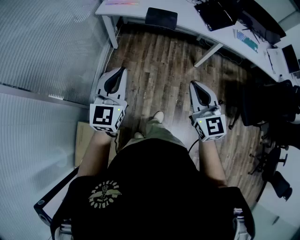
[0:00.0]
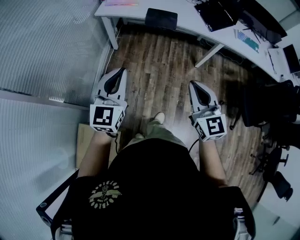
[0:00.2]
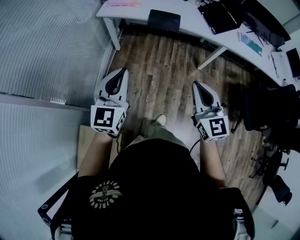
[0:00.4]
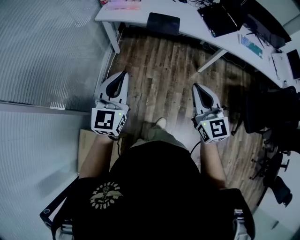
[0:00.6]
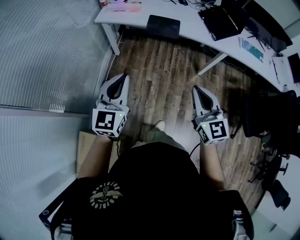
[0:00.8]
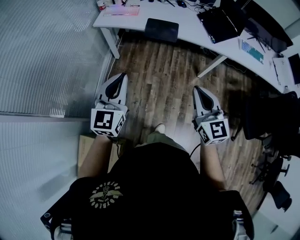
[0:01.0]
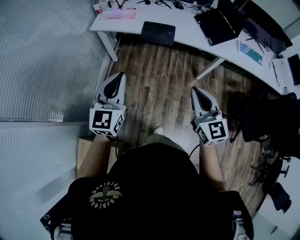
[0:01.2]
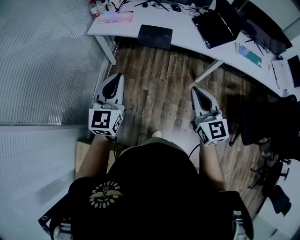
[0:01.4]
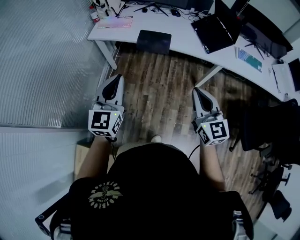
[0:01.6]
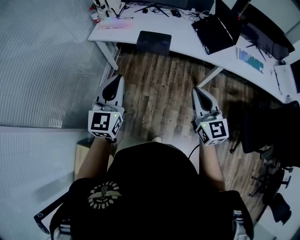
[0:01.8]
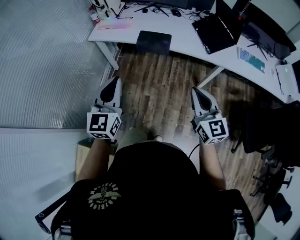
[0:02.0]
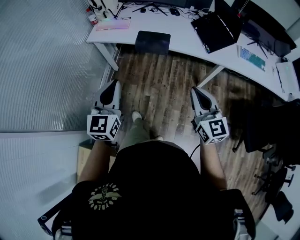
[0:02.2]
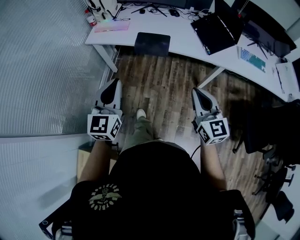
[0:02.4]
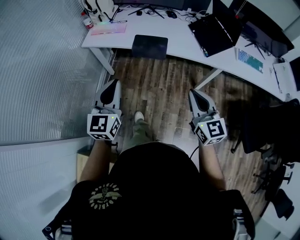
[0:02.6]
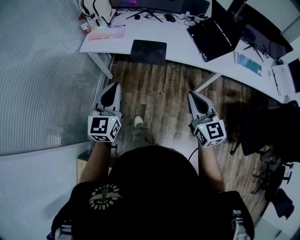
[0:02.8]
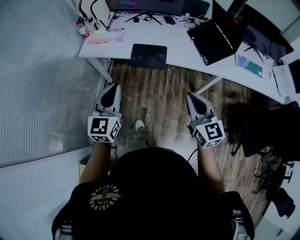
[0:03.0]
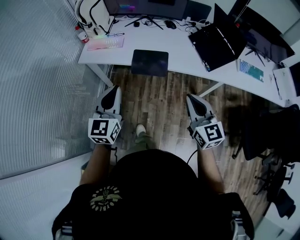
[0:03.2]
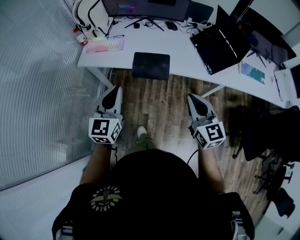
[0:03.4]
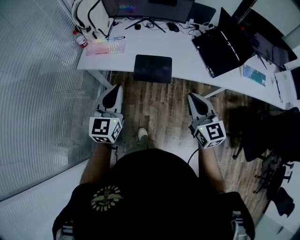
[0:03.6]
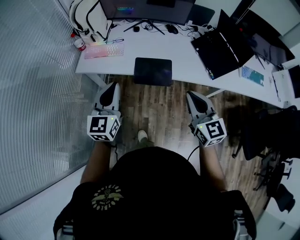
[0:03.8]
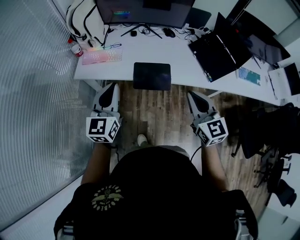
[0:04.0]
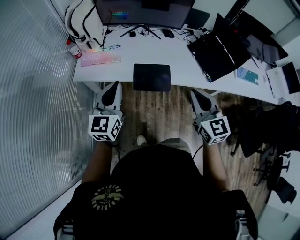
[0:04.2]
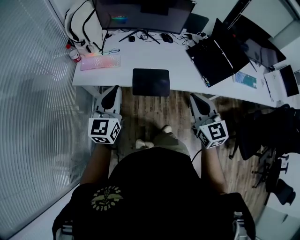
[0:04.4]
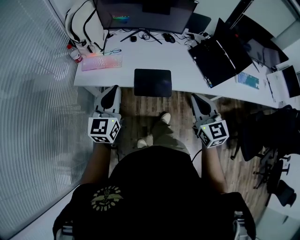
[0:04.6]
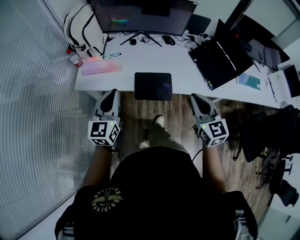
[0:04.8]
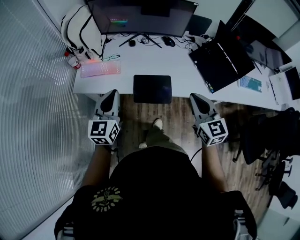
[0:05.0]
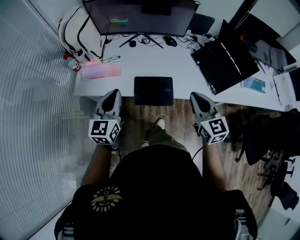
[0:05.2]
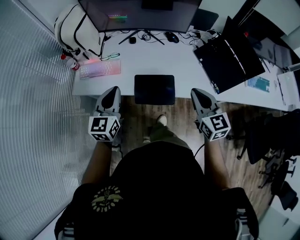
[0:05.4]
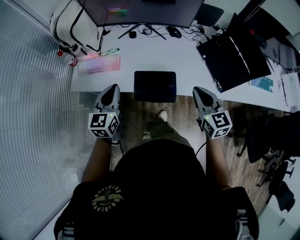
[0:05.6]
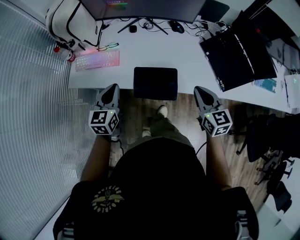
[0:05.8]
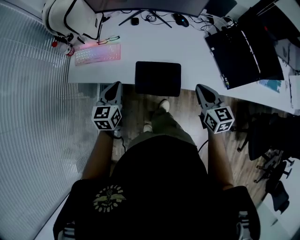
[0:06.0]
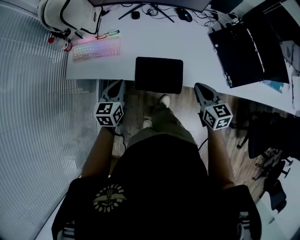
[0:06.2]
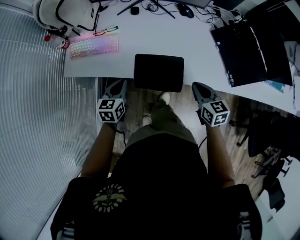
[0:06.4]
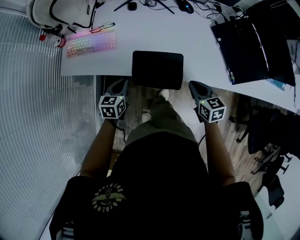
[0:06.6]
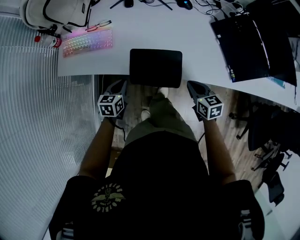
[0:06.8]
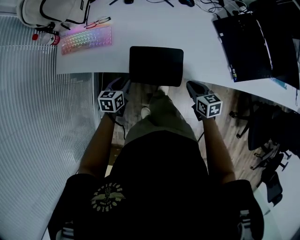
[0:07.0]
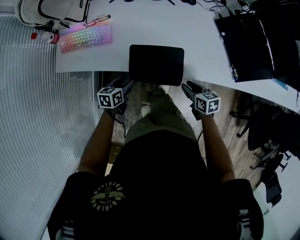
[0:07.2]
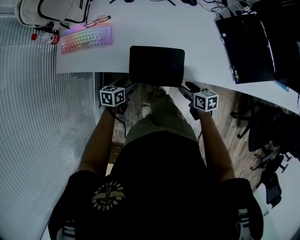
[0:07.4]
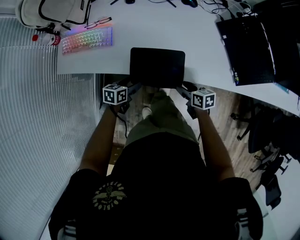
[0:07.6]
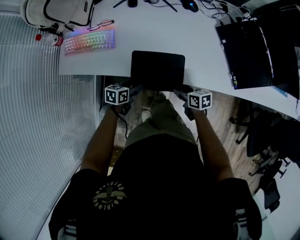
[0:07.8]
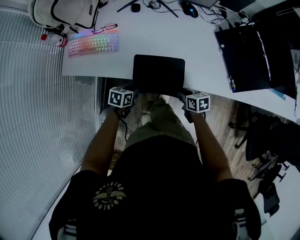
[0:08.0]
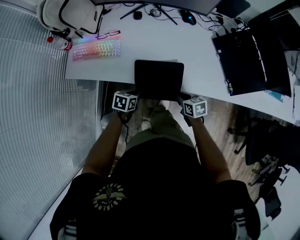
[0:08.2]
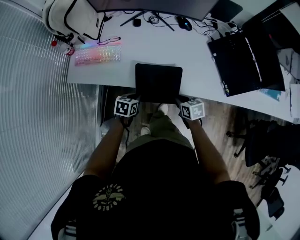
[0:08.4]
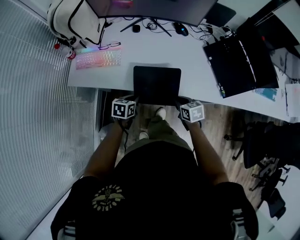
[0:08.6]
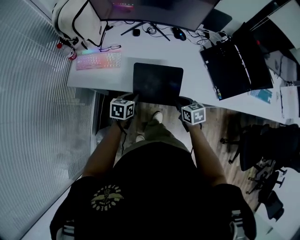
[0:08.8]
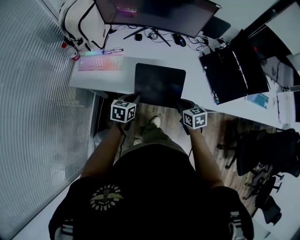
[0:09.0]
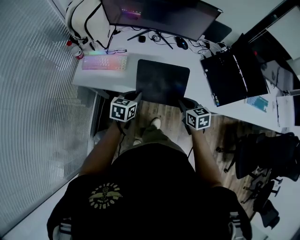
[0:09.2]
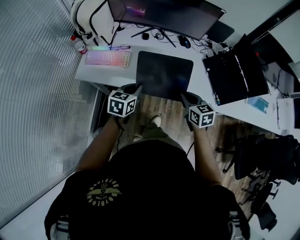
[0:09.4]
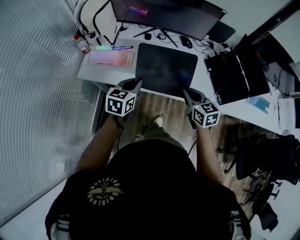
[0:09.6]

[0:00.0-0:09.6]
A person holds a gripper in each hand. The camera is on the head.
0:00.0 to 0:01.6: Both grippers move forward and to the right, some 25 cm.
0:01.6 to 0:03.2: Both grippers move forward, approximately 20 cm.
0:03.2 to 0:04.8: The two grippers go roughly 20 cm forward.
0:04.8 to 0:06.4: The two grippers go approximately 30 cm downward and forward. The right gripper turns by about 30 degrees, while the left gripper turns by approximately 30 degrees.
0:06.4 to 0:08.0: The right gripper goes approximately 15 cm downward, swivels roughly 30 degrees, and opens, then closes once more; the left gripper is displaced downward and to the right by roughly 15 cm, changes its angle by about 30 degrees, and opens, then closes again.
0:08.0 to 0:09.6: Both grippers travel together upward, about 30 cm. The right gripper rotates roughly 40 degrees; the left gripper turns by about 30 degrees.

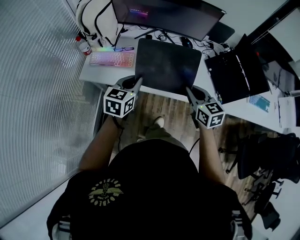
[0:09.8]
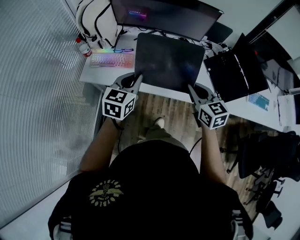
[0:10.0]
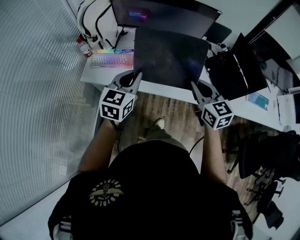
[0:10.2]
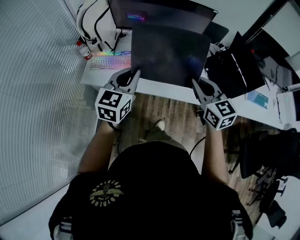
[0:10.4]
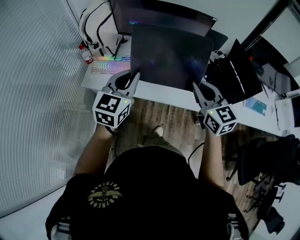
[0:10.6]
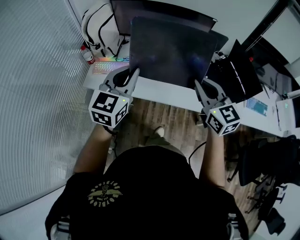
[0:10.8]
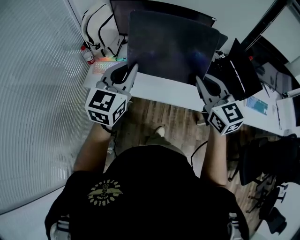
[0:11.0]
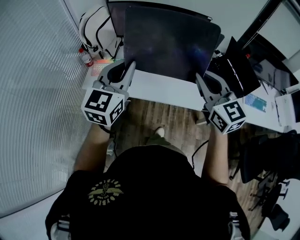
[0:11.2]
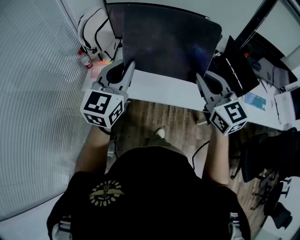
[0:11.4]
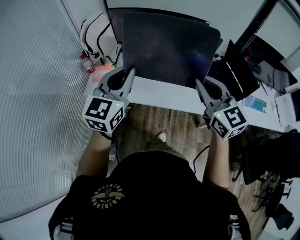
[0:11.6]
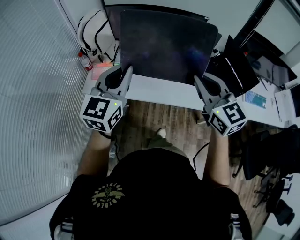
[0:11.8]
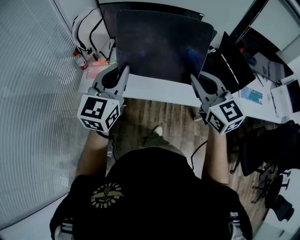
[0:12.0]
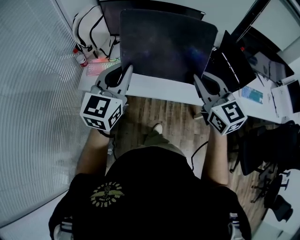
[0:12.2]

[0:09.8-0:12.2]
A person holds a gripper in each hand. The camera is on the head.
0:09.8 to 0:11.0: Both grippers move upward, some 20 cm. The left gripper turns by about 30 degrees; the right gripper turns by approximately 20 degrees.
0:11.0 to 0:12.2: The grippers make only small movements.

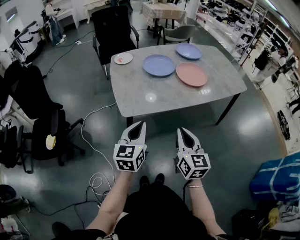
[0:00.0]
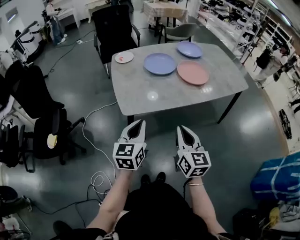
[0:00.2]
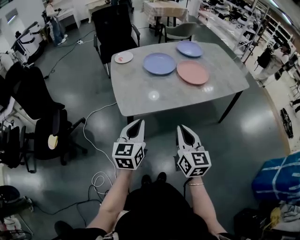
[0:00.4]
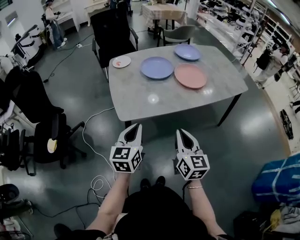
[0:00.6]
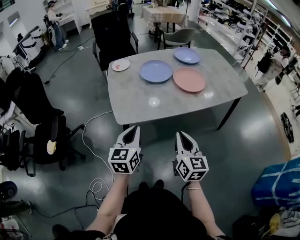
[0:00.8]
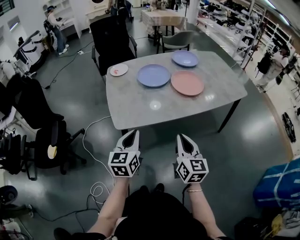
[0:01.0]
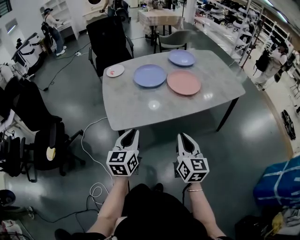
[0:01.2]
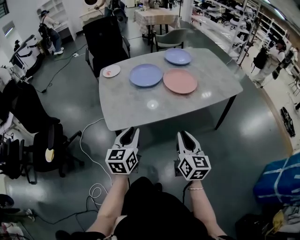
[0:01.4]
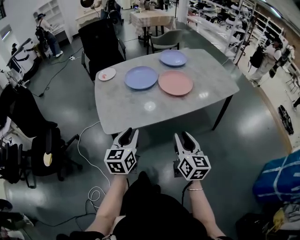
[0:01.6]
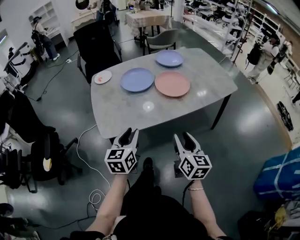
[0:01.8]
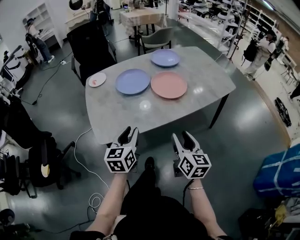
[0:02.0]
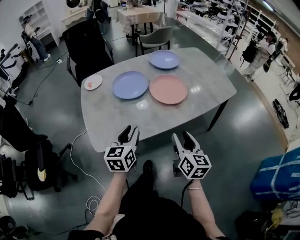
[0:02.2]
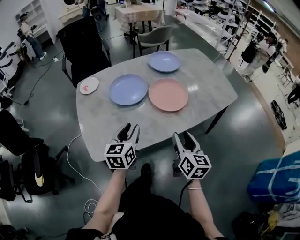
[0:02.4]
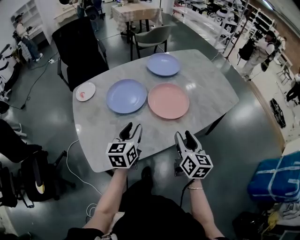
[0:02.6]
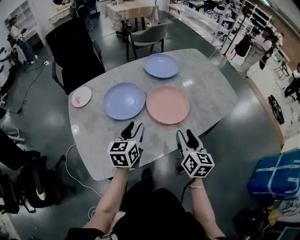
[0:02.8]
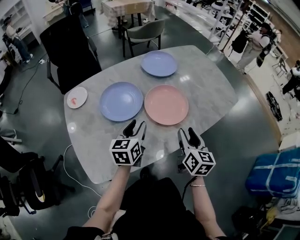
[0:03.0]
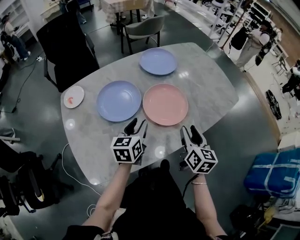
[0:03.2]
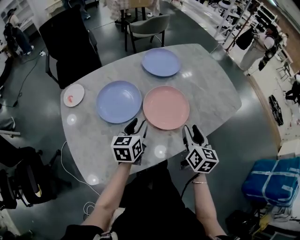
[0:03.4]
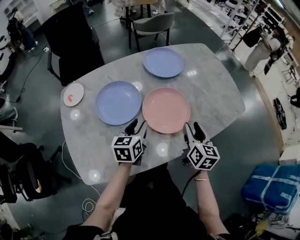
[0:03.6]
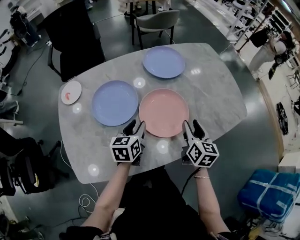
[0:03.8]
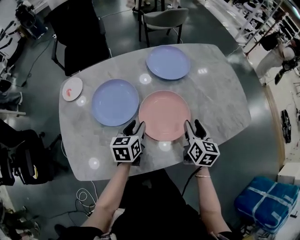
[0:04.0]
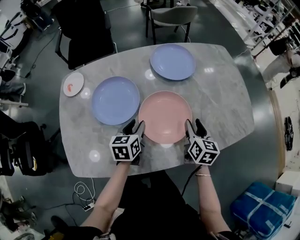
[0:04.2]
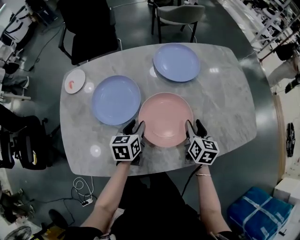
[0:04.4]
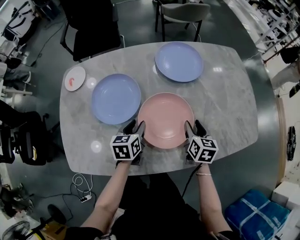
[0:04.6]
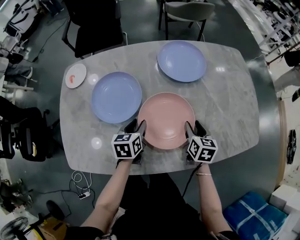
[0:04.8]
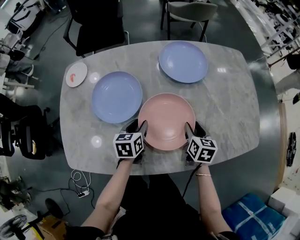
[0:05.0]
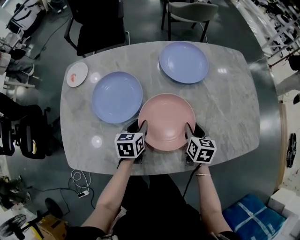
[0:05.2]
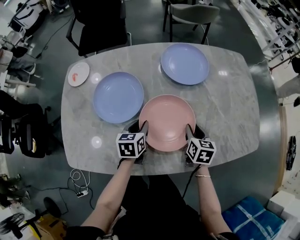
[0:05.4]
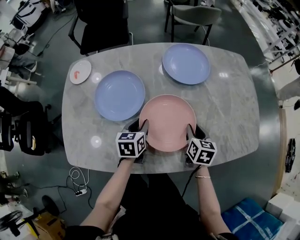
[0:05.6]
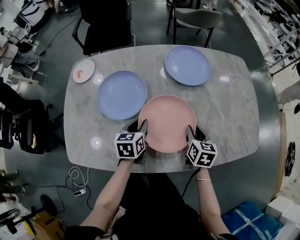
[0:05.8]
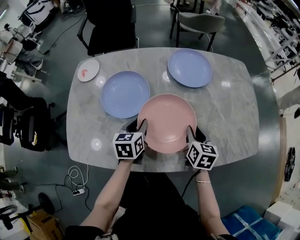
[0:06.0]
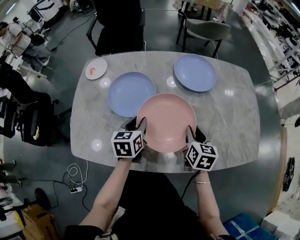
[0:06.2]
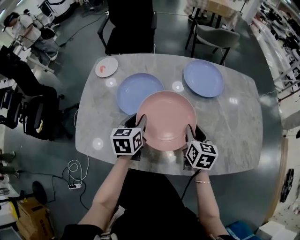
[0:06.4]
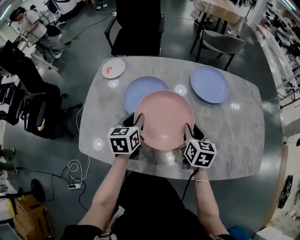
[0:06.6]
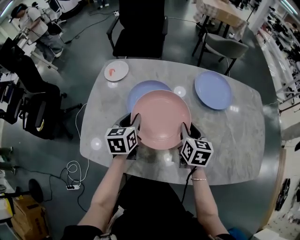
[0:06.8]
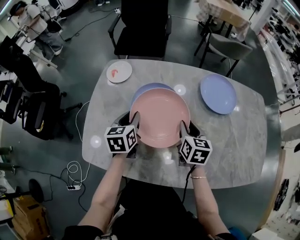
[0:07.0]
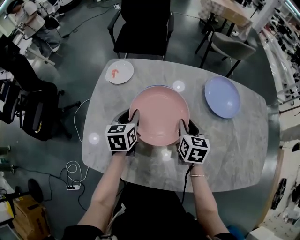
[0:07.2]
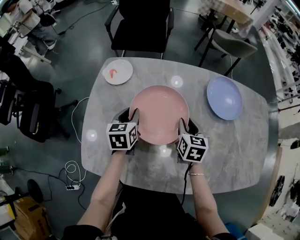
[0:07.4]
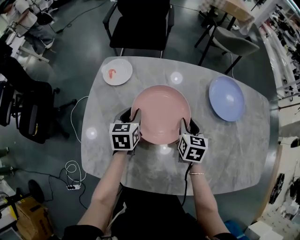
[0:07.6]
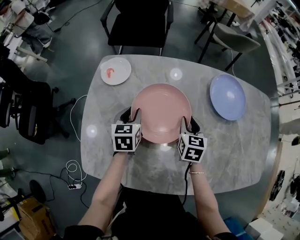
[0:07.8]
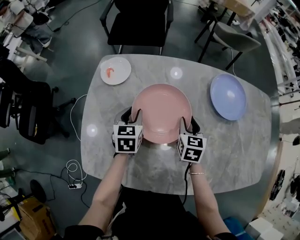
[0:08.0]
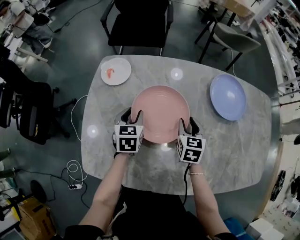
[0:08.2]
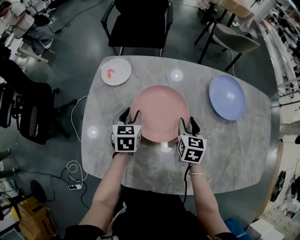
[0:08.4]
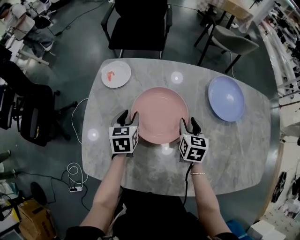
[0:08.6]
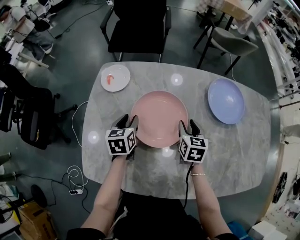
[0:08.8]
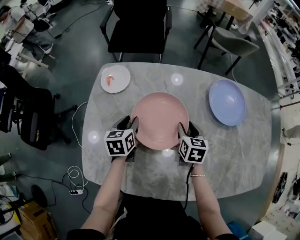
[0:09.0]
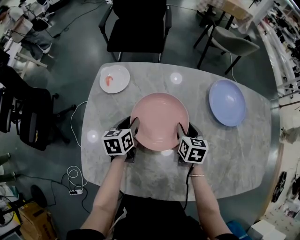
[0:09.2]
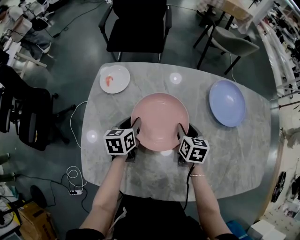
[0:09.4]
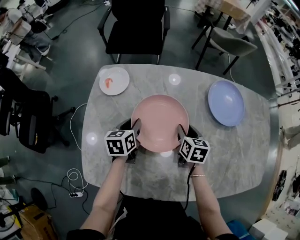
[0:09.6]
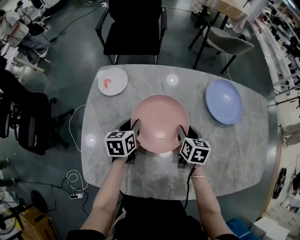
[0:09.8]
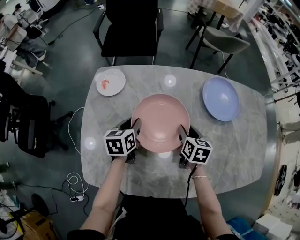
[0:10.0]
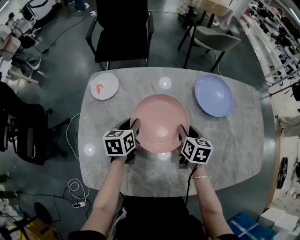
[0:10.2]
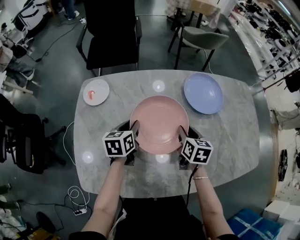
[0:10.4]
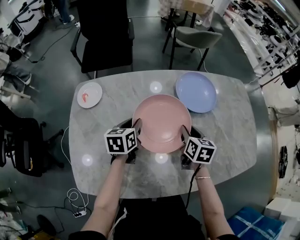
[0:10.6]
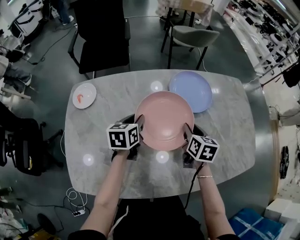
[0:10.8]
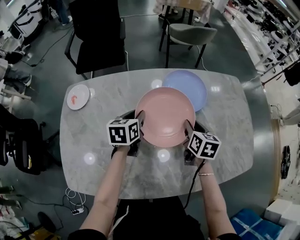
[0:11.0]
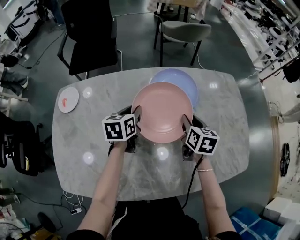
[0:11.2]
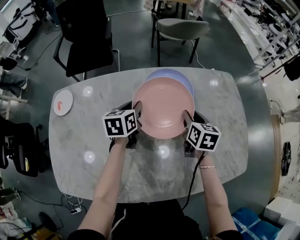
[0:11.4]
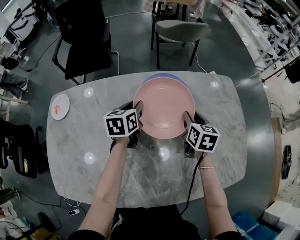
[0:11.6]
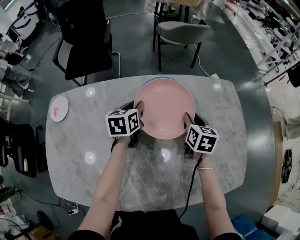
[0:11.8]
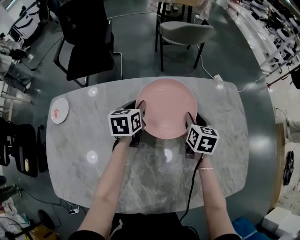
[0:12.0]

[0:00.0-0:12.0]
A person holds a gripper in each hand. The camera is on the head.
0:00.0 to 0:01.6: The two grippers go some 10 cm to the right and forward. The right gripper opens its fingers. The left gripper opens.
0:01.6 to 0:03.0: The two grippers go roughly 30 cm forward.
0:03.0 to 0:04.4: The right gripper heads forward and downward, covering some 25 cm, and turns by some 20 degrees. Meanwhile the left gripper goes approximately 15 cm downward and forward, and turns by about 30 degrees.
0:04.4 to 0:06.0: The grippers stay close to where they were, moving slightly.
0:06.0 to 0:07.6: Both grippers move to the left and forward, some 25 cm.
0:07.6 to 0:09.0: The grippers move only a little.
0:09.0 to 0:10.4: Both grippers travel together to the right, roughly 10 cm.
0:10.4 to 0:12.0: Both grippers move to the right and forward, roughly 30 cm.
